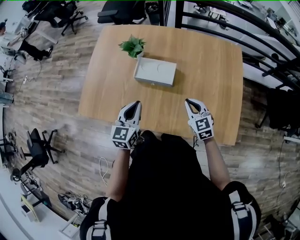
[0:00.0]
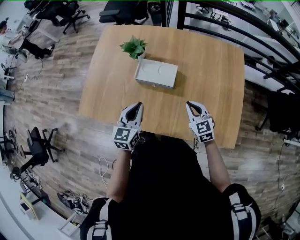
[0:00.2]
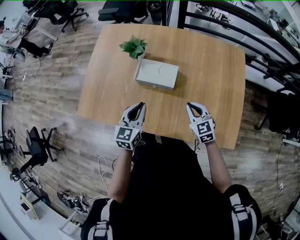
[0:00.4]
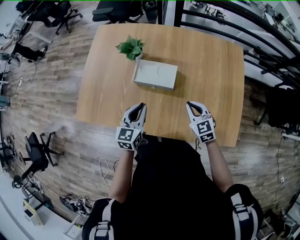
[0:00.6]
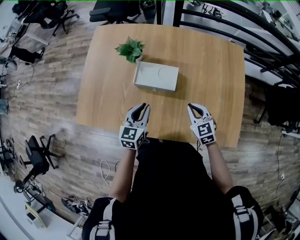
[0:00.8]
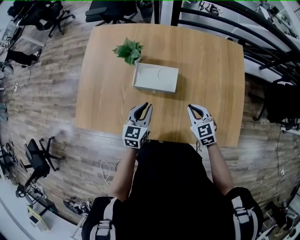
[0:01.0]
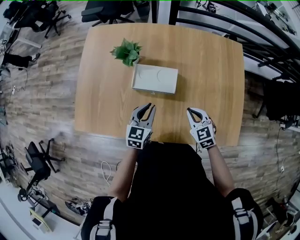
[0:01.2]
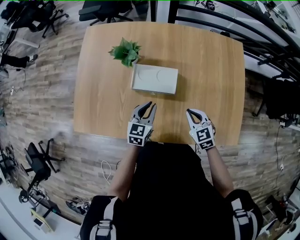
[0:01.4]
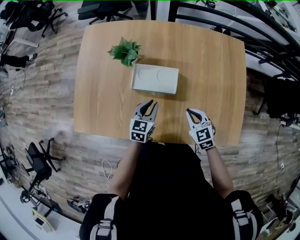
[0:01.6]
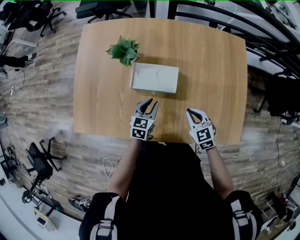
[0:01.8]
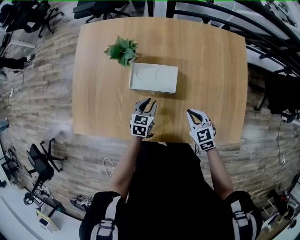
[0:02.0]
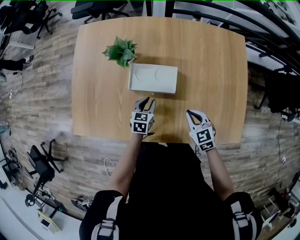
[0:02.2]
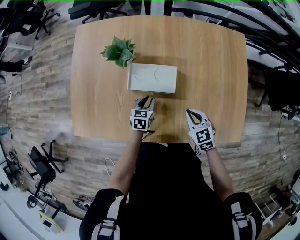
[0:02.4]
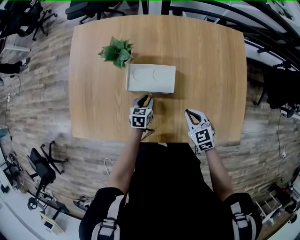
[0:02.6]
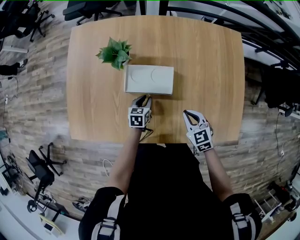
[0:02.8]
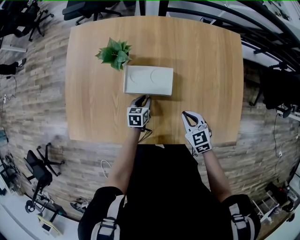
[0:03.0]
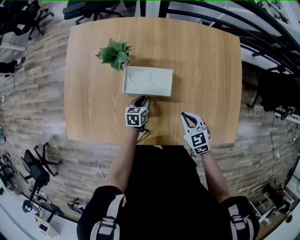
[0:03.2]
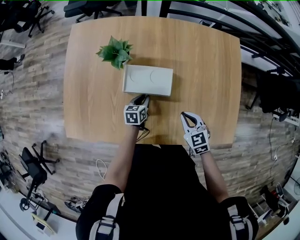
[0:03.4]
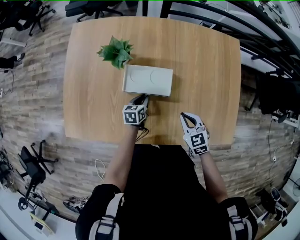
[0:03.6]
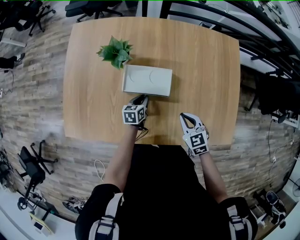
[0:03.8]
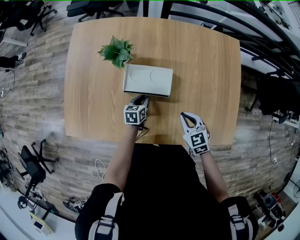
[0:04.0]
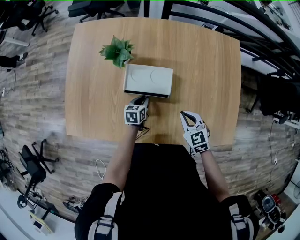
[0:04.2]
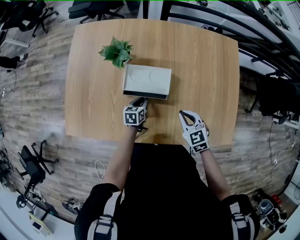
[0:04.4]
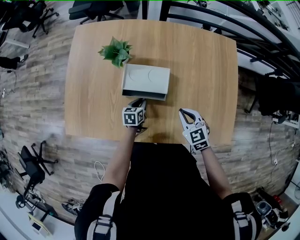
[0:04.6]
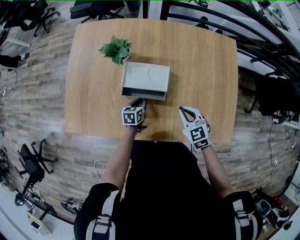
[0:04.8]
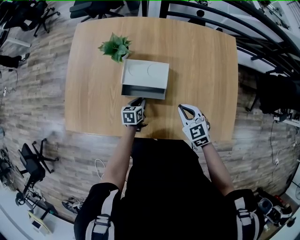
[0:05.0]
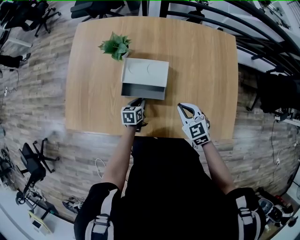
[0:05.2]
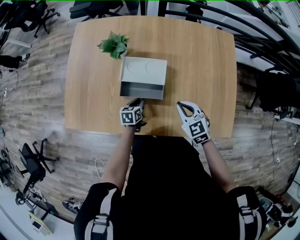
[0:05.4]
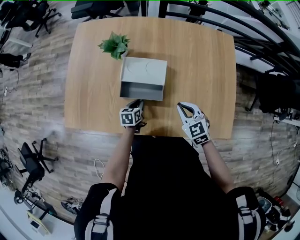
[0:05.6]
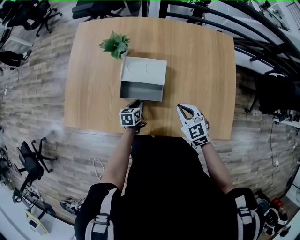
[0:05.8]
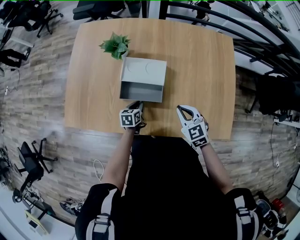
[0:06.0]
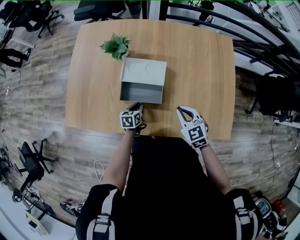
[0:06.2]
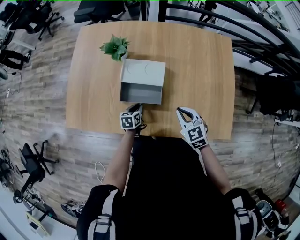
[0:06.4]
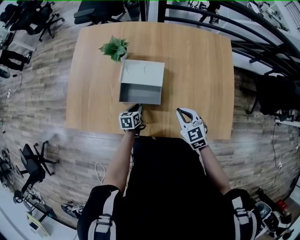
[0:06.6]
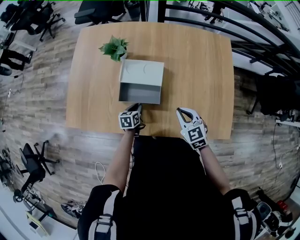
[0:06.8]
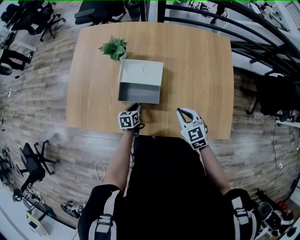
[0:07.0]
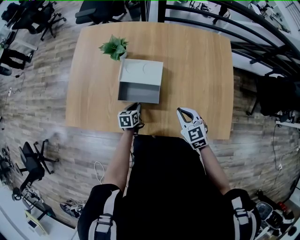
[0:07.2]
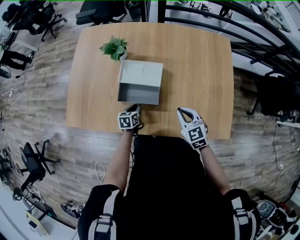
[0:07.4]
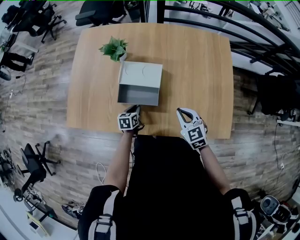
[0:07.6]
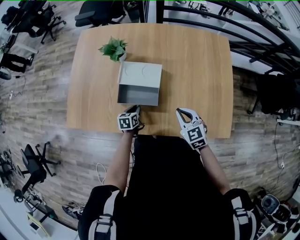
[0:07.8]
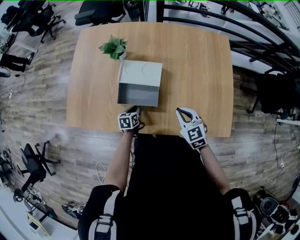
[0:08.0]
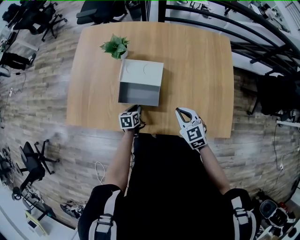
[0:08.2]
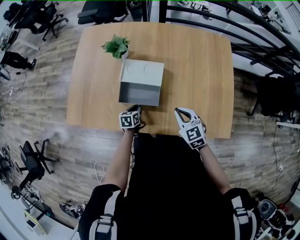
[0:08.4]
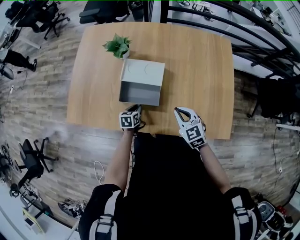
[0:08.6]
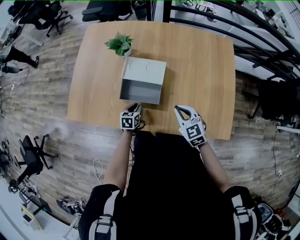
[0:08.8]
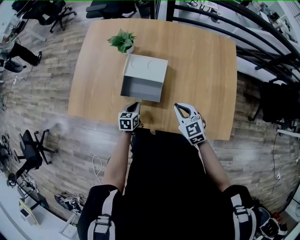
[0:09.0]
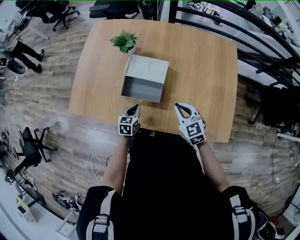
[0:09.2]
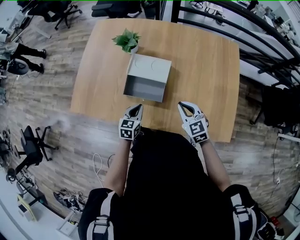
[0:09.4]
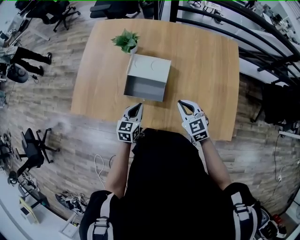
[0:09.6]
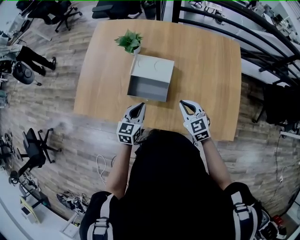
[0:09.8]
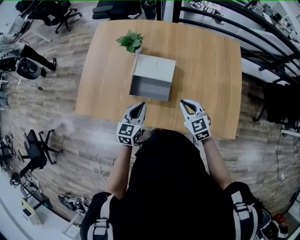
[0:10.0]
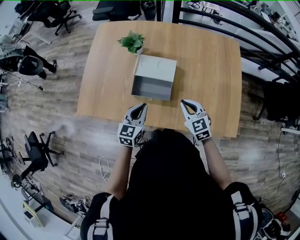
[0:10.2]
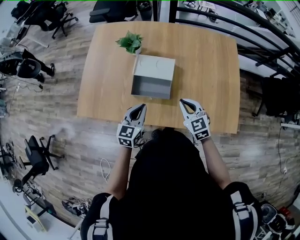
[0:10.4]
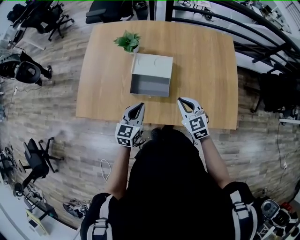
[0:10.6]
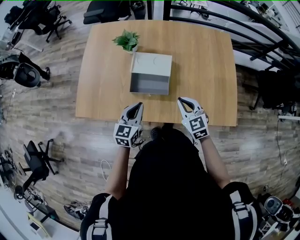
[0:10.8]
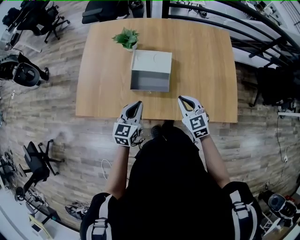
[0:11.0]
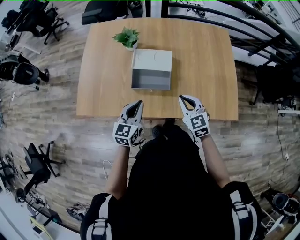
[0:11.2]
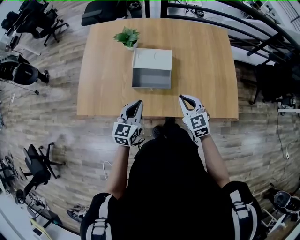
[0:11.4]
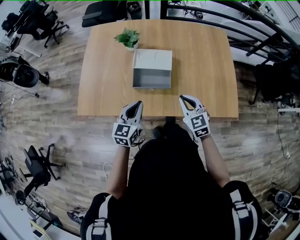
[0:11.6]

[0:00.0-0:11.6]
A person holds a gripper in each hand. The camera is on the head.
0:00.0 to 0:01.4: The right gripper moves downward, roughly 5 cm; the left gripper is displaced downward and forward by about 15 cm.
0:01.4 to 0:02.8: The left gripper travels downward by approximately 15 cm, and turns by approximately 20 degrees.
0:02.8 to 0:04.4: The grippers make only small movements.
0:04.4 to 0:05.8: The left gripper heads backward, covering roughly 5 cm.
0:05.8 to 0:08.8: There are only small adjustments of the grippers.
0:08.8 to 0:10.2: The left gripper shifts some 20 cm upward, and changes its angle by some 30 degrees.
0:10.2 to 0:11.6: The left gripper travels backward and to the left by about 10 cm. Meanwhile the right gripper goes some 10 cm backward.

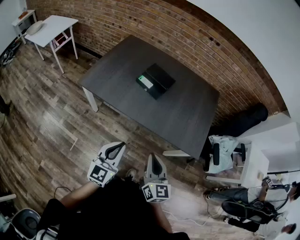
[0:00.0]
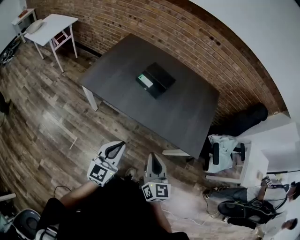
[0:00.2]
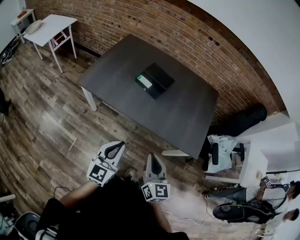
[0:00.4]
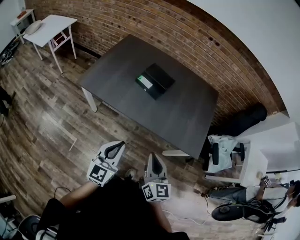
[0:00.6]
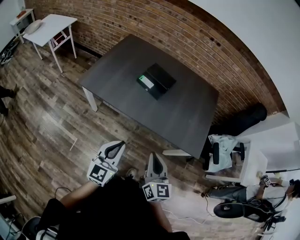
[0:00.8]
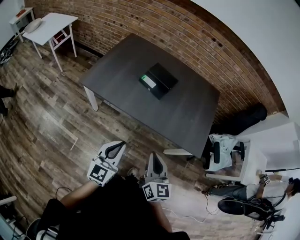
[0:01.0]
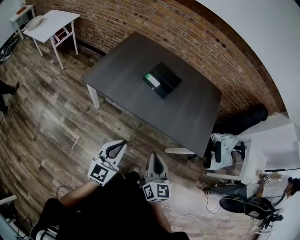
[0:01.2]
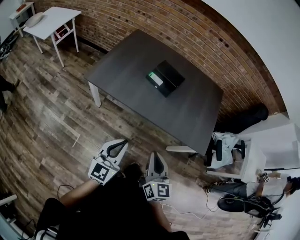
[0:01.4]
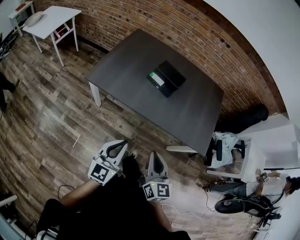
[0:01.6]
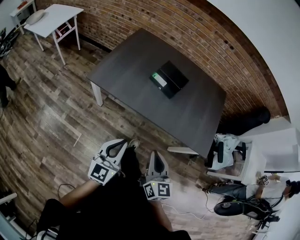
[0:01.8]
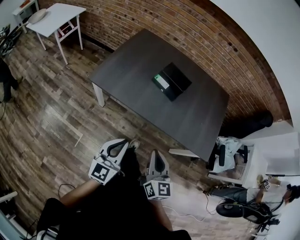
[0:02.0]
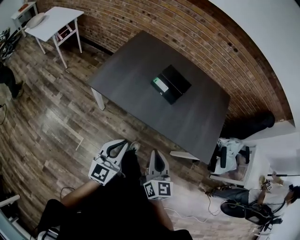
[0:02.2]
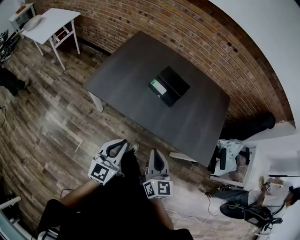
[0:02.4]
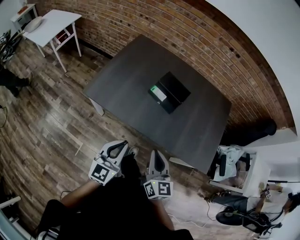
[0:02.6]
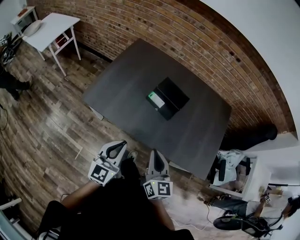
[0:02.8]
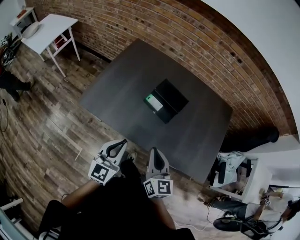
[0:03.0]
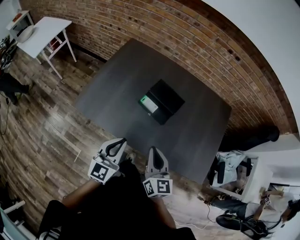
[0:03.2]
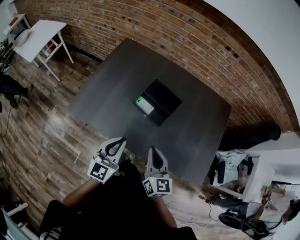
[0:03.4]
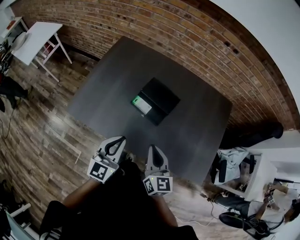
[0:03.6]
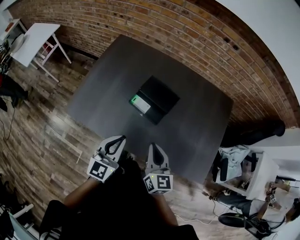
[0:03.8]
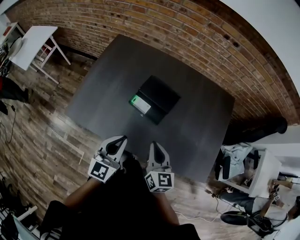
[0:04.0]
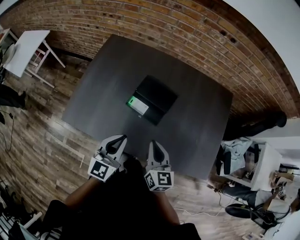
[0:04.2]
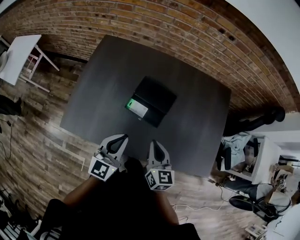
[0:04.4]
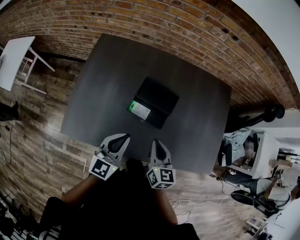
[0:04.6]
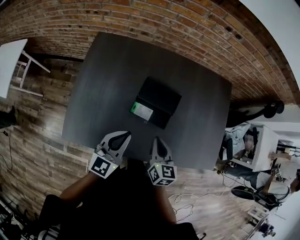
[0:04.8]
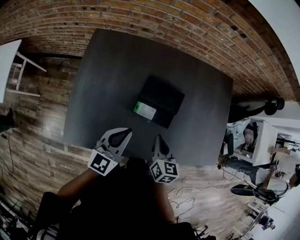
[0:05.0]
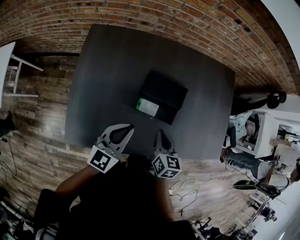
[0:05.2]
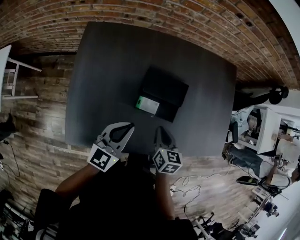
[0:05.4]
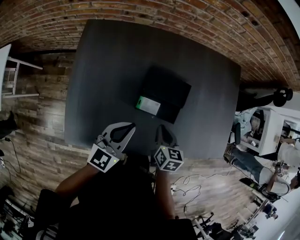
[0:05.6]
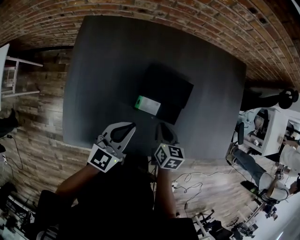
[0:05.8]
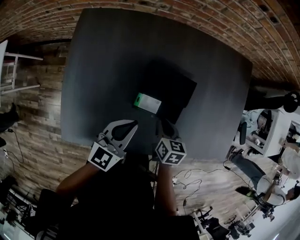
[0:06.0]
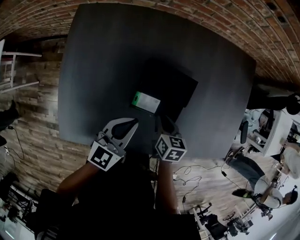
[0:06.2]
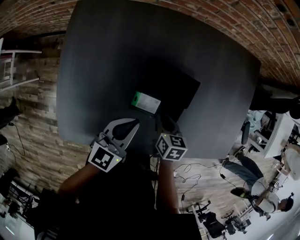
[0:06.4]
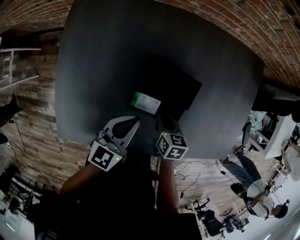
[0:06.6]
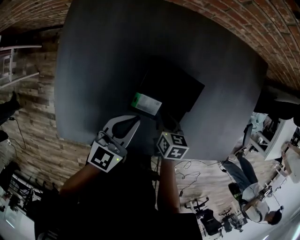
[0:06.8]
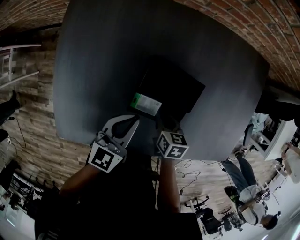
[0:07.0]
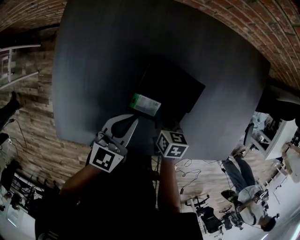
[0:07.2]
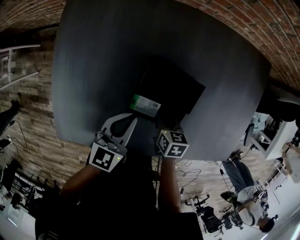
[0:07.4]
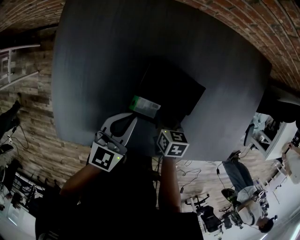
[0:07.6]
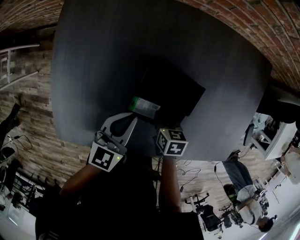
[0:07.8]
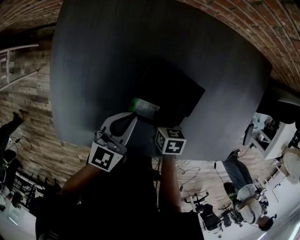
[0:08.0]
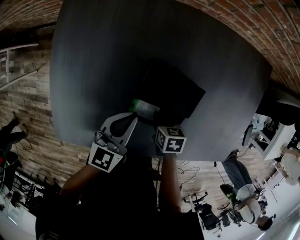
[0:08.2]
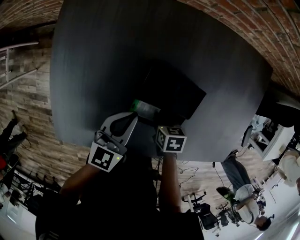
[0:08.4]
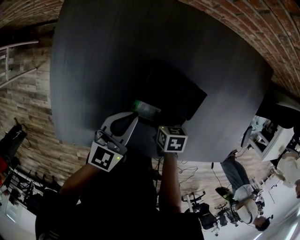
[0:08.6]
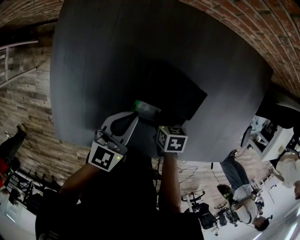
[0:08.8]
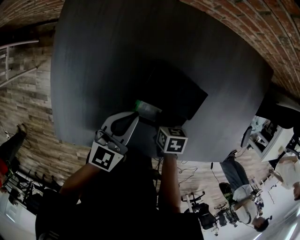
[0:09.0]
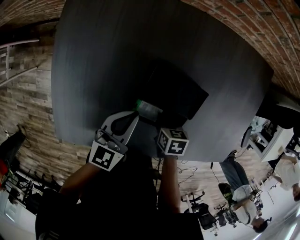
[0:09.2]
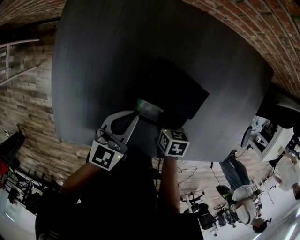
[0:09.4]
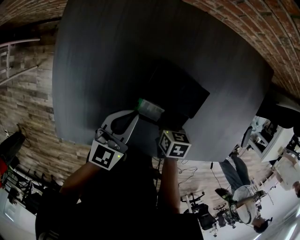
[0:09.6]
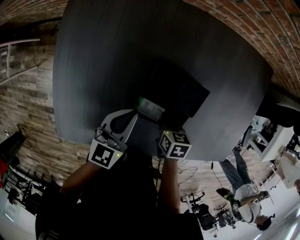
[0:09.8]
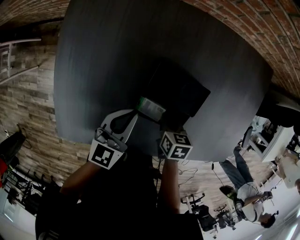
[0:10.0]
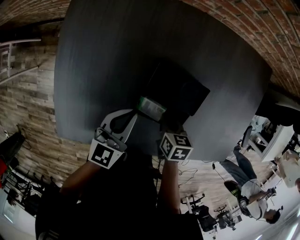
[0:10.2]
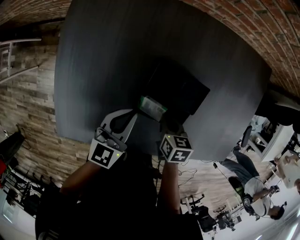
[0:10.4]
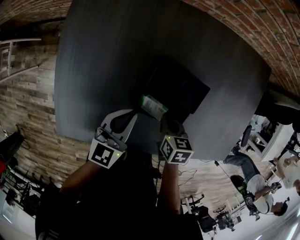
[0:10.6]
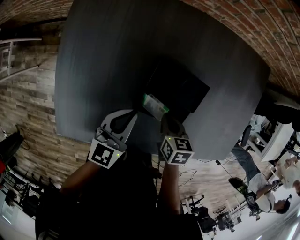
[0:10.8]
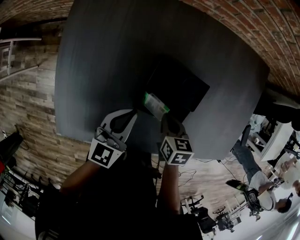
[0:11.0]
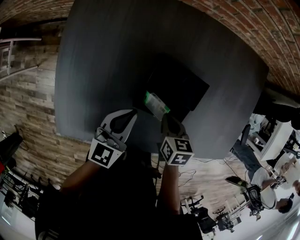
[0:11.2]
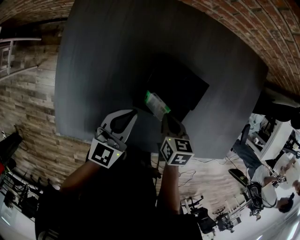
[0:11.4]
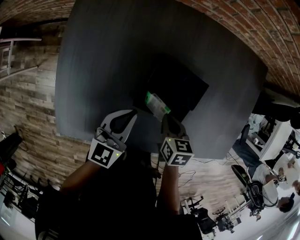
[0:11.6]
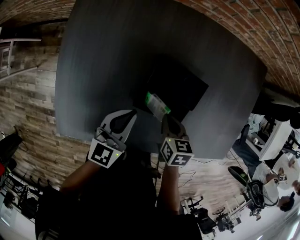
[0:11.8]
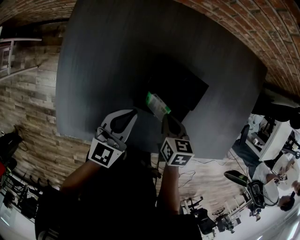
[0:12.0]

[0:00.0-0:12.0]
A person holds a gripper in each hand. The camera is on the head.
0:00.0 to 0:01.6: Both grippers move to the left, some 10 cm.
0:01.6 to 0:03.0: Both grippers move forward, about 25 cm.
0:03.0 to 0:04.4: The grippers both shift forward by about 15 cm.
0:04.4 to 0:06.0: The right gripper is displaced downward and forward by roughly 20 cm, and turns by roughly 30 degrees. Meanwhile the left gripper moves forward, downward and to the left, about 20 cm, and turns by some 30 degrees.
0:06.0 to 0:07.6: Both grippers move downward and forward, about 10 cm.
0:07.6 to 0:09.0: There are only small adjustments of the grippers.
0:09.0 to 0:10.4: The right gripper travels upward by some 5 cm.
0:10.4 to 0:12.0: There are only small adjustments of the grippers.
